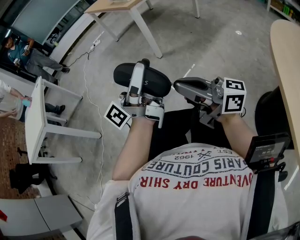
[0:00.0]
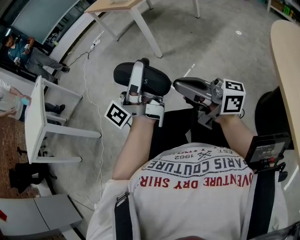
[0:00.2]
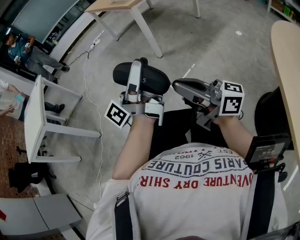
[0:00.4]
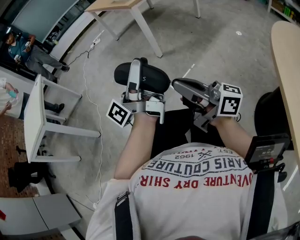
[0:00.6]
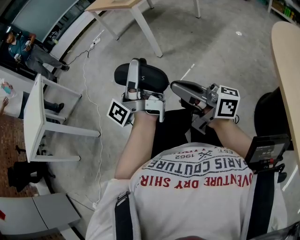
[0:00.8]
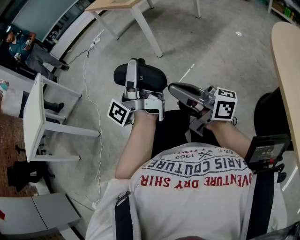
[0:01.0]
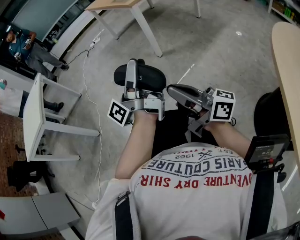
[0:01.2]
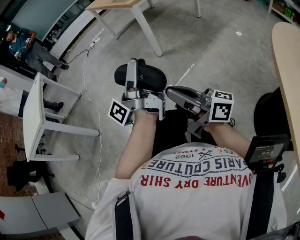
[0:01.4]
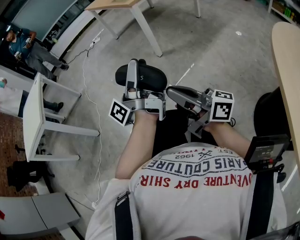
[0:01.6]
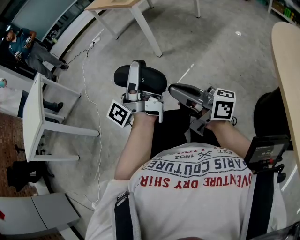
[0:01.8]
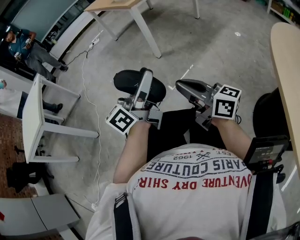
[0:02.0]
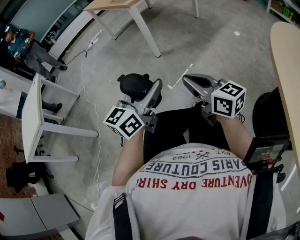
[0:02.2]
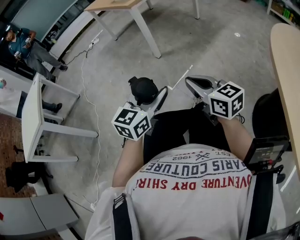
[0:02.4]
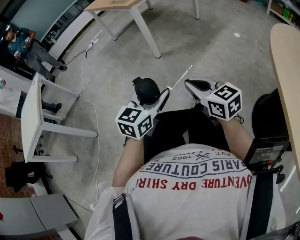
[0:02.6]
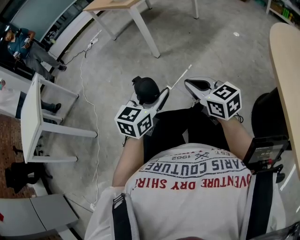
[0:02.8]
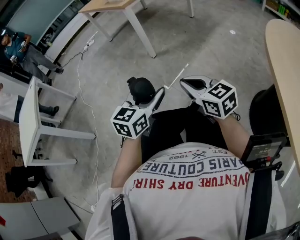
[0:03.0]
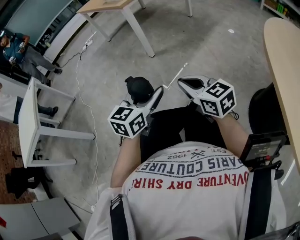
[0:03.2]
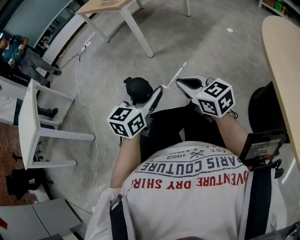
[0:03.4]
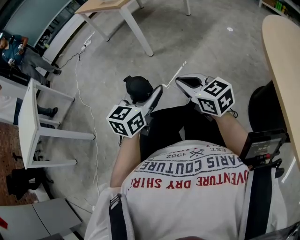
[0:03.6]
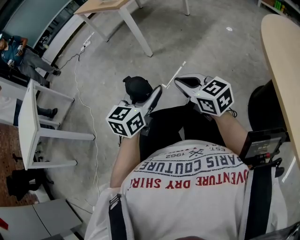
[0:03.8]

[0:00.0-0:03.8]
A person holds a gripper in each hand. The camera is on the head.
0:00.0 to 0:01.2: The left gripper ends up about 5 cm from where it was.
0:01.2 to 0:02.6: The right gripper goes some 10 cm downward and to the right, and points its fingers roughly 40 degrees further downward. The left gripper heads downward, covering some 10 cm, and tips its fingers downward by roughly 50 degrees.
0:02.6 to 0:03.8: The grippers move only a little.

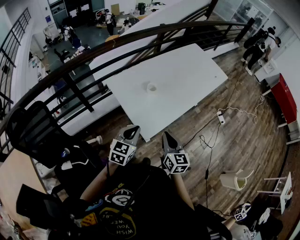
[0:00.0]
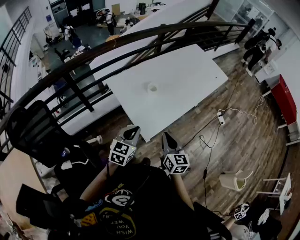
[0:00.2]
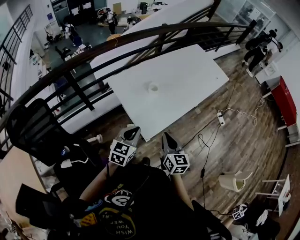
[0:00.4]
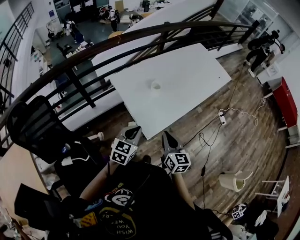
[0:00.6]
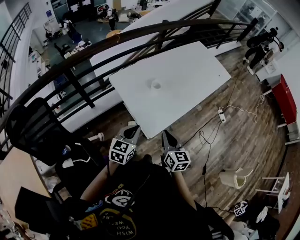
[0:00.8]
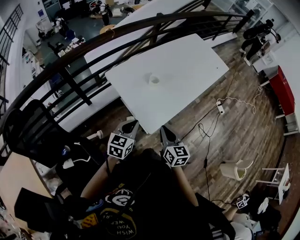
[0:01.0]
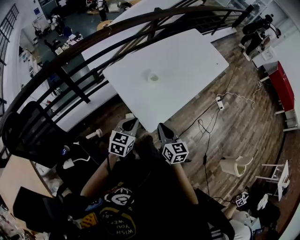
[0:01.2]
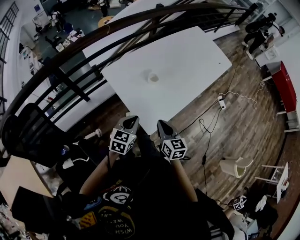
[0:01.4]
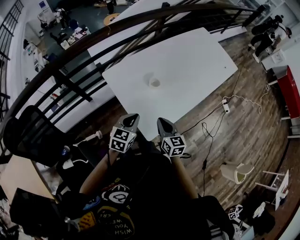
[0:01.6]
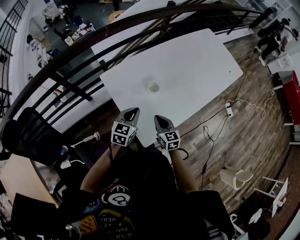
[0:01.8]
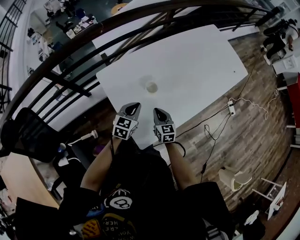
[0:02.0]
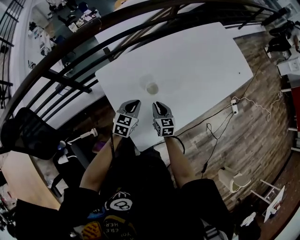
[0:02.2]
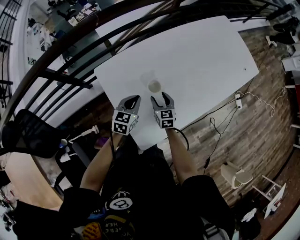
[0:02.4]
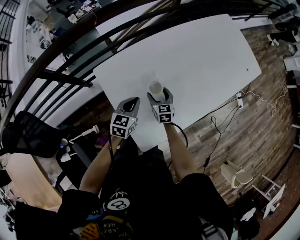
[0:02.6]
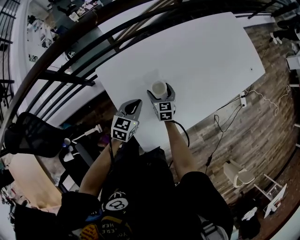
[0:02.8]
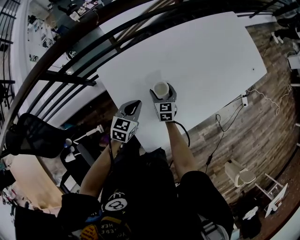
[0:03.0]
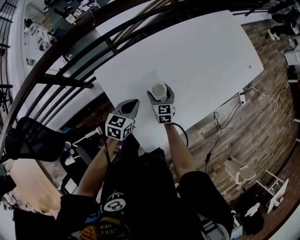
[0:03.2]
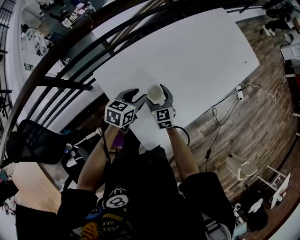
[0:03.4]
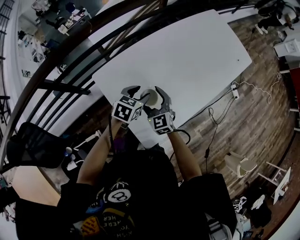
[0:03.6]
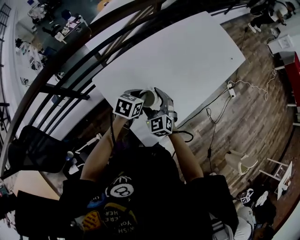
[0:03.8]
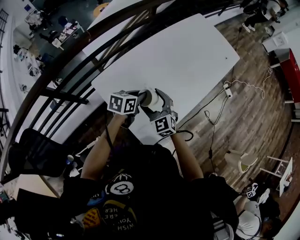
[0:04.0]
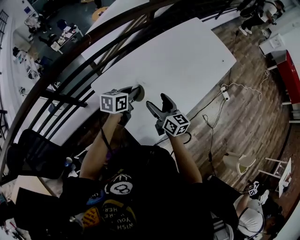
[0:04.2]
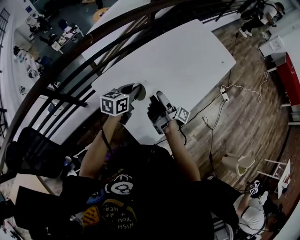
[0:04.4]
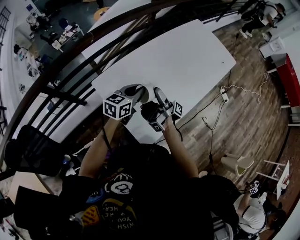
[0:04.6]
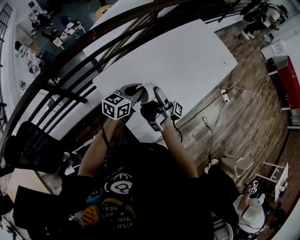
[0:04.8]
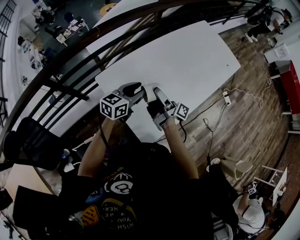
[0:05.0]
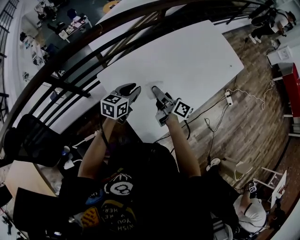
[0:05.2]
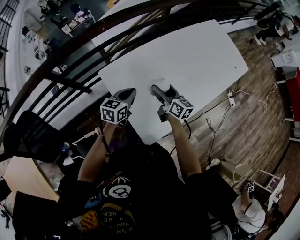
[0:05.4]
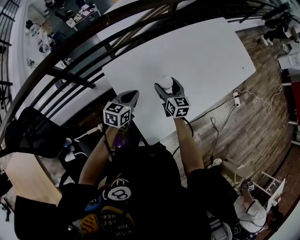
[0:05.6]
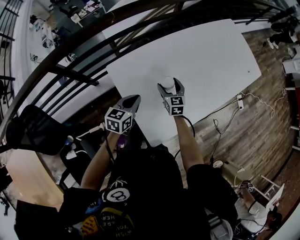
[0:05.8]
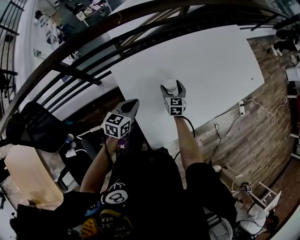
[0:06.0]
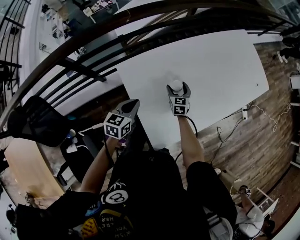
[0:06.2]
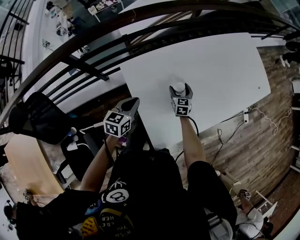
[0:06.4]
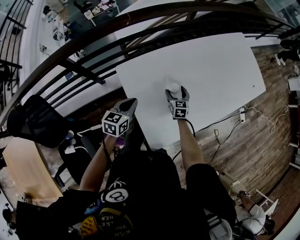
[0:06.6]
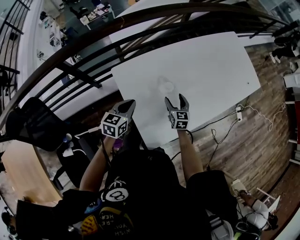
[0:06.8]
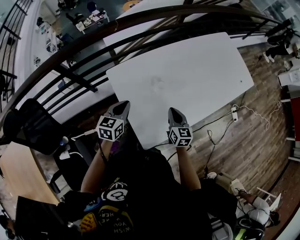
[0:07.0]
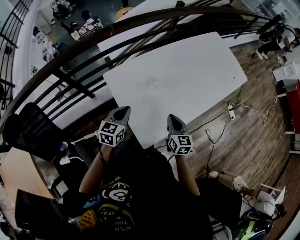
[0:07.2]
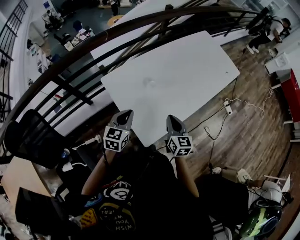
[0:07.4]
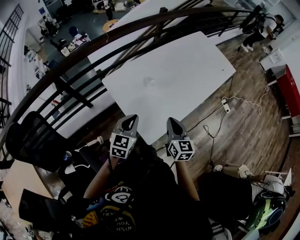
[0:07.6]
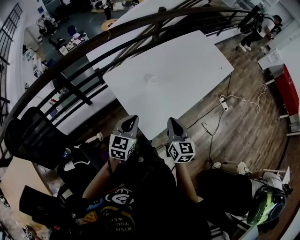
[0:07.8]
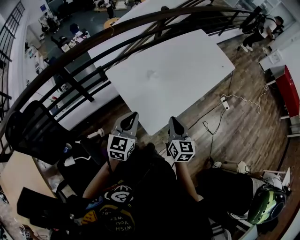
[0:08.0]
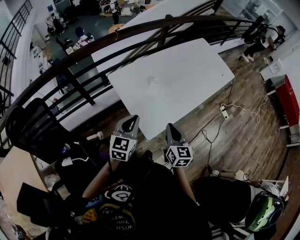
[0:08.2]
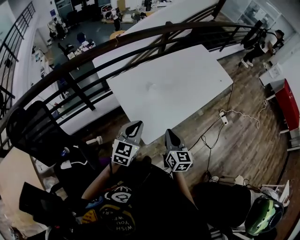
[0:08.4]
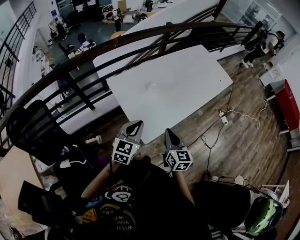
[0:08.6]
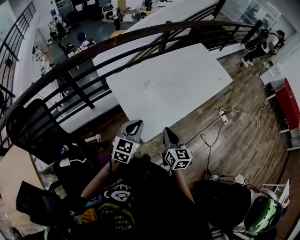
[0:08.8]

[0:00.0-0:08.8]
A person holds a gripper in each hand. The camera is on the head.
0:00.0 to 0:01.4: The right gripper goes some 10 cm downward, forward and to the left; the left gripper travels forward and downward by roughly 10 cm.
0:01.4 to 0:03.0: The right gripper moves forward and downward, some 40 cm, and opens. Meanwhile the left gripper moves forward and downward, roughly 25 cm.
0:03.0 to 0:04.4: The right gripper goes about 25 cm upward, and twists roughly 90 degrees clockwise, seen from behind. Meanwhile the left gripper goes roughly 15 cm upward, rotates approximately 20 degrees, and opens and closes again.
0:04.4 to 0:05.8: The left gripper travels downward, to the left and backward by approximately 15 cm, and opens and closes again; the right gripper is displaced downward and forward by some 20 cm, and rolls counterclockwise, seen from behind, by approximately 90 degrees.
0:05.8 to 0:07.4: The right gripper heads backward, upward and to the right, covering about 30 cm, and closes its fingers, while the left gripper heads backward and upward, covering roughly 15 cm.
0:07.4 to 0:08.8: The right gripper shifts approximately 15 cm backward and upward. Meanwhile the left gripper heads backward, upward and to the right, covering approximately 15 cm.

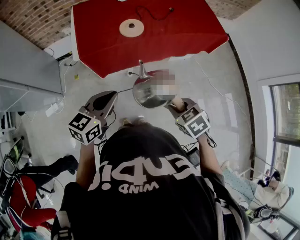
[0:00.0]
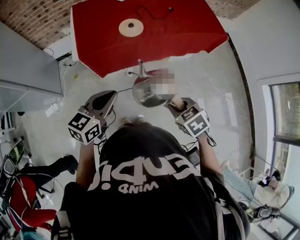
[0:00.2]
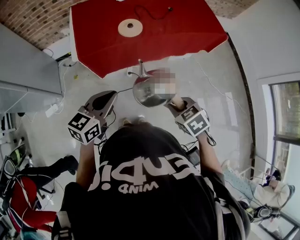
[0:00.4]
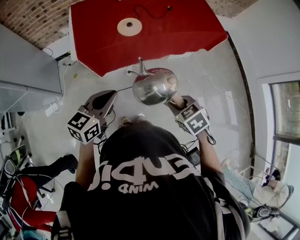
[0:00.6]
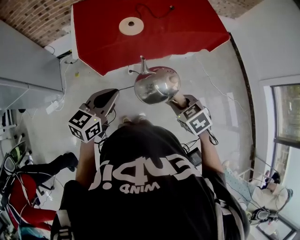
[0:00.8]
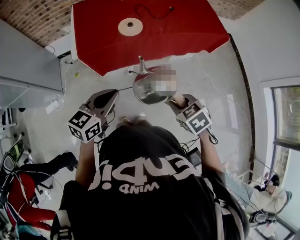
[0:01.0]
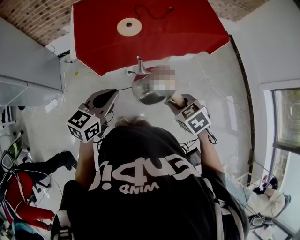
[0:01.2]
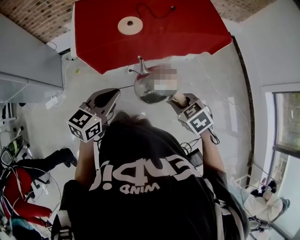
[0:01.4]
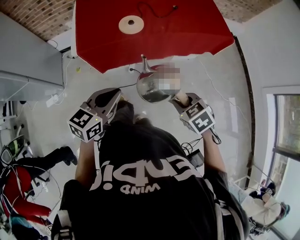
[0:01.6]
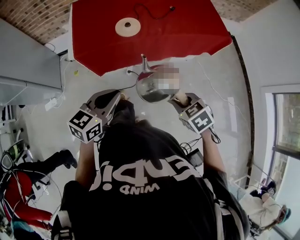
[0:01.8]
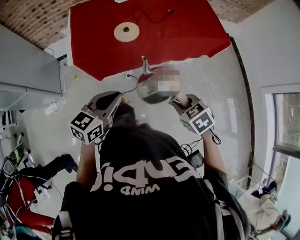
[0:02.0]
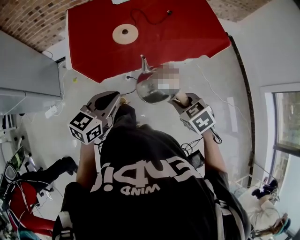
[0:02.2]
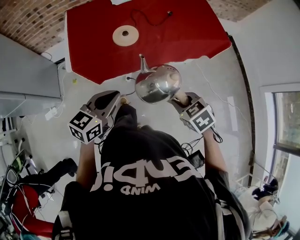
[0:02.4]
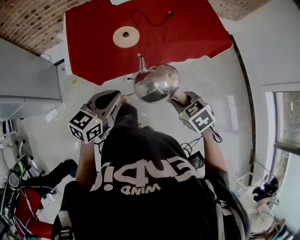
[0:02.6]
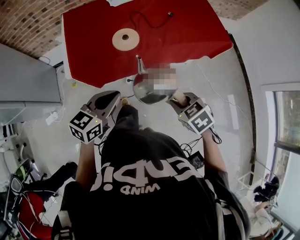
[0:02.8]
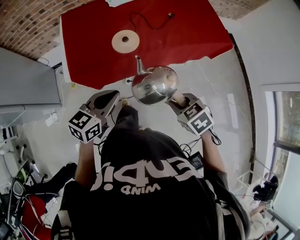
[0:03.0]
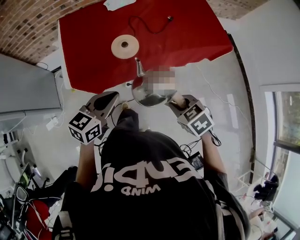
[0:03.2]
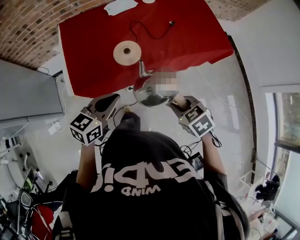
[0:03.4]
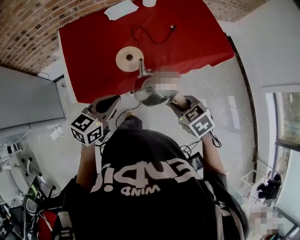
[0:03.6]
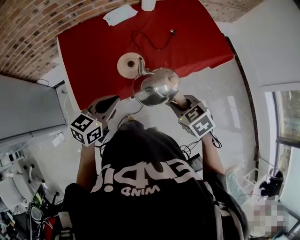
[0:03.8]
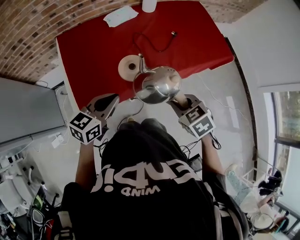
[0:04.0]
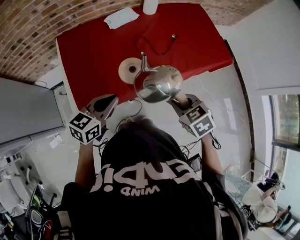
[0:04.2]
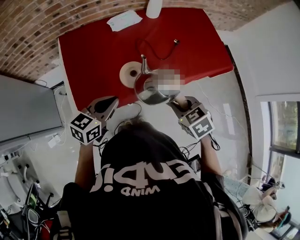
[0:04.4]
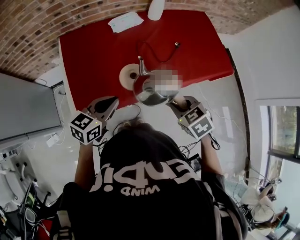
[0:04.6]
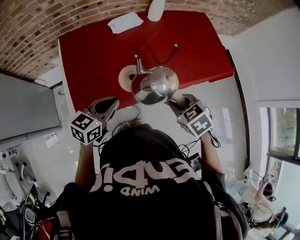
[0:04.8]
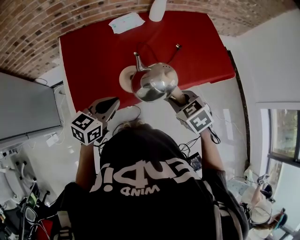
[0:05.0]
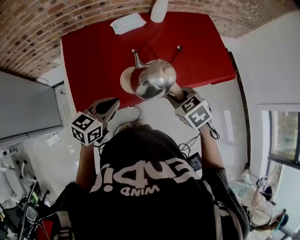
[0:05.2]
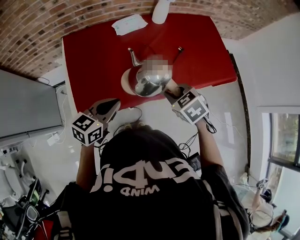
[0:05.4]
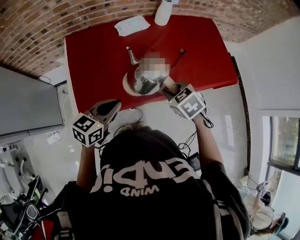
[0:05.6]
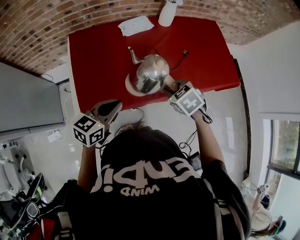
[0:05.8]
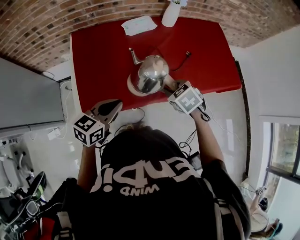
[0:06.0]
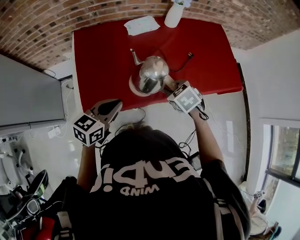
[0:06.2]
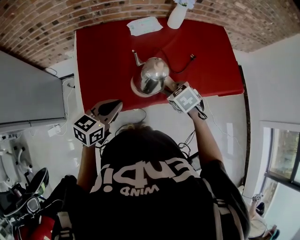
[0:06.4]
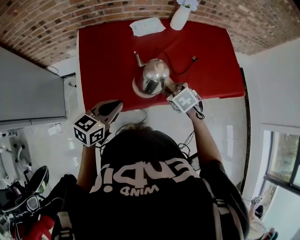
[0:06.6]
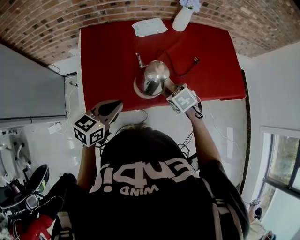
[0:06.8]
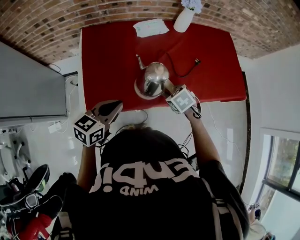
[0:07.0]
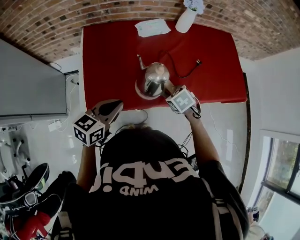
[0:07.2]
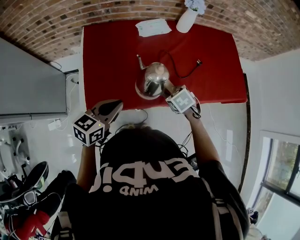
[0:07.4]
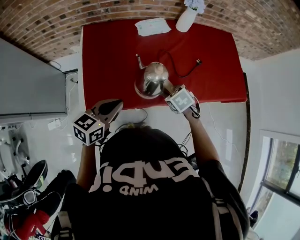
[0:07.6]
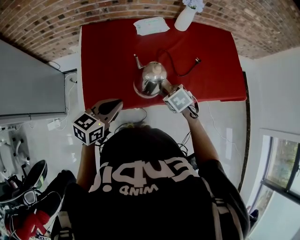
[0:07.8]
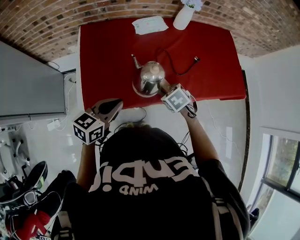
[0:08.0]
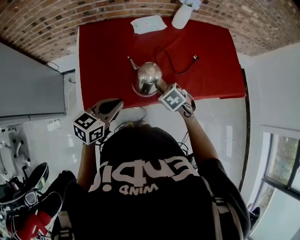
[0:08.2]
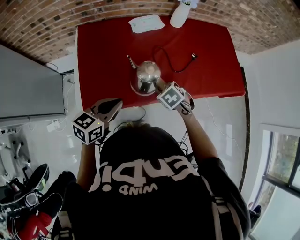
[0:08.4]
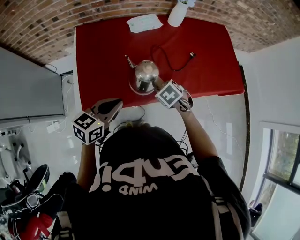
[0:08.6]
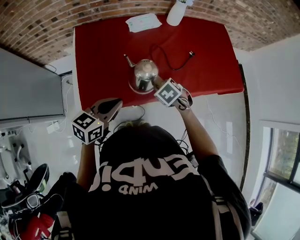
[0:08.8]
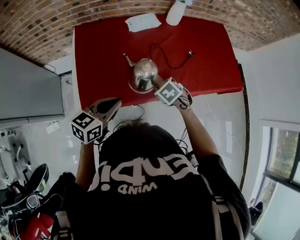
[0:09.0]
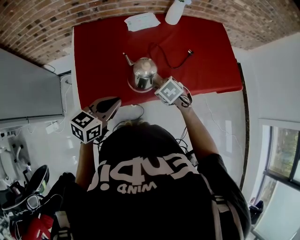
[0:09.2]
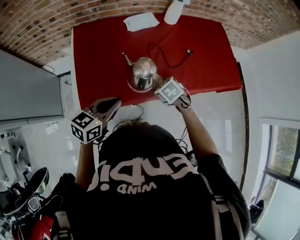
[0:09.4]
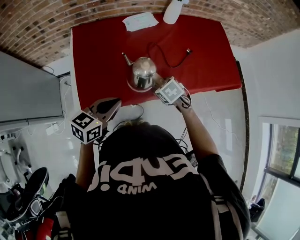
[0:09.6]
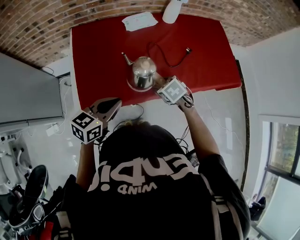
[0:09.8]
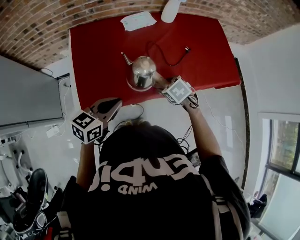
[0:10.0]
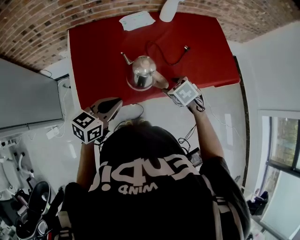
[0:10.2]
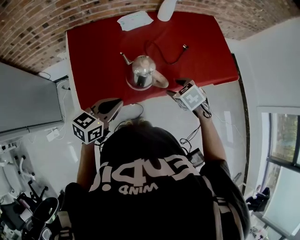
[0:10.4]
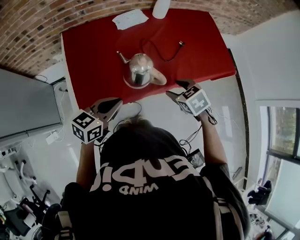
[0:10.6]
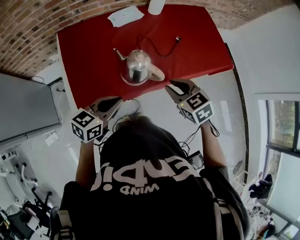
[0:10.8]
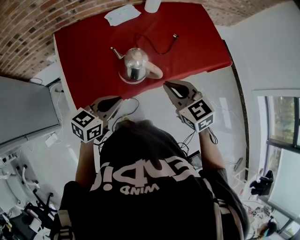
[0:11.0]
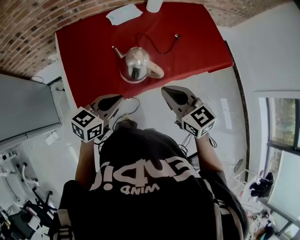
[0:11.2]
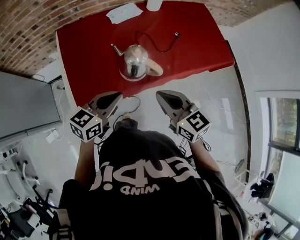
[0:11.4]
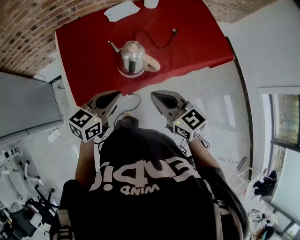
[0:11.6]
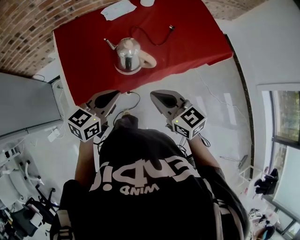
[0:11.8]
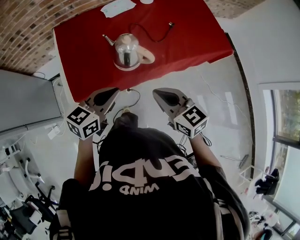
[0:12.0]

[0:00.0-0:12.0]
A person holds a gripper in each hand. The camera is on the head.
0:00.0 to 0:01.6: Both grippers move to the right, about 5 cm.
0:01.6 to 0:03.0: The two grippers go approximately 15 cm forward.
0:03.0 to 0:04.4: The right gripper travels forward by some 15 cm, while the left gripper moves forward and to the left, some 20 cm.
0:04.4 to 0:06.0: The right gripper moves forward and to the left, roughly 15 cm.
0:06.0 to 0:07.6: The right gripper is displaced downward by approximately 5 cm.
0:07.6 to 0:09.0: There are only small adjustments of the grippers.
0:09.0 to 0:10.4: The right gripper travels to the right and upward by some 10 cm, and opens up.
0:10.4 to 0:12.0: The right gripper shifts roughly 20 cm backward and upward, tips its fingers upward by approximately 40 degrees, and closes its fingers; the left gripper goes roughly 5 cm to the right.
